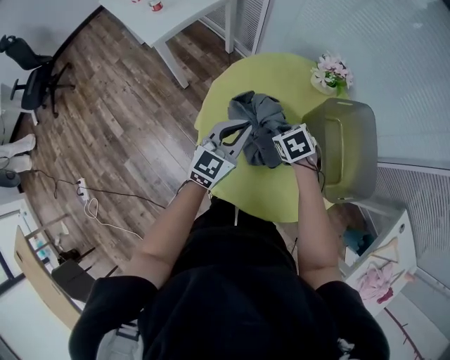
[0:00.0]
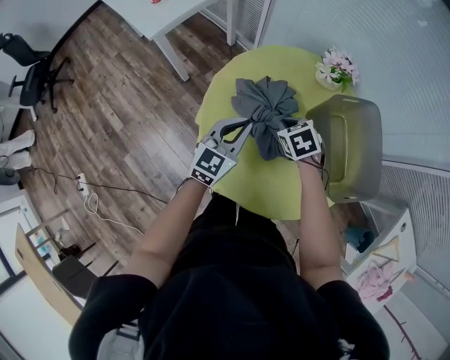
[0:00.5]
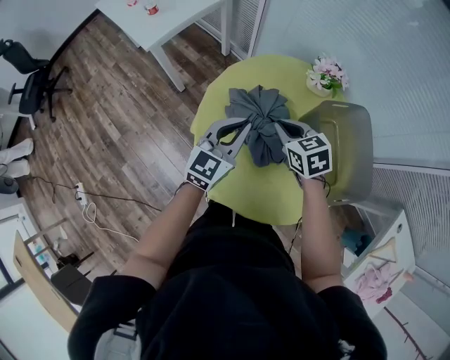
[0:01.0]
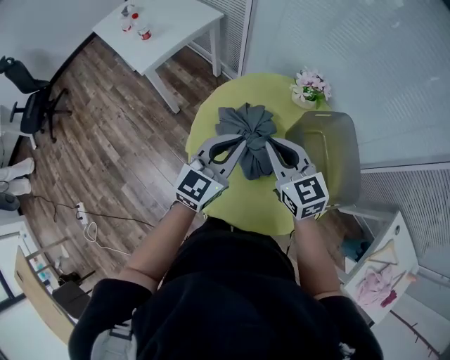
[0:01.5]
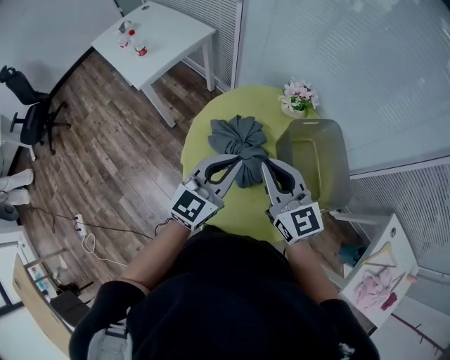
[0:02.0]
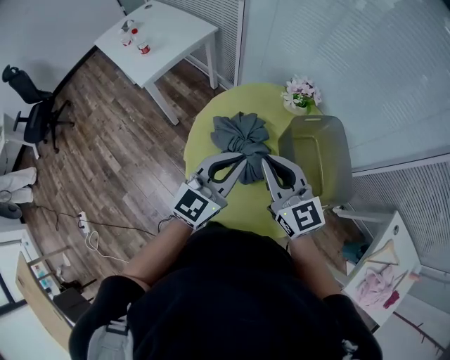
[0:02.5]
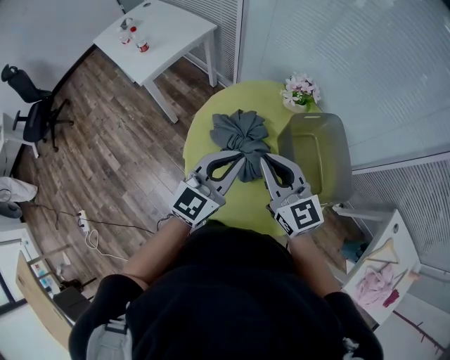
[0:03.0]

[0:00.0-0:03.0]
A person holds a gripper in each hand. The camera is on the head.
0:00.0 to 0:01.5: The right gripper shifts about 20 cm upward, and points its fingers roughly 50 degrees further upward. Meanwhile the left gripper heads upward, covering about 10 cm.
0:01.5 to 0:03.0: The left gripper moves roughly 5 cm, while the right gripper travels upward and backward by roughly 10 cm.

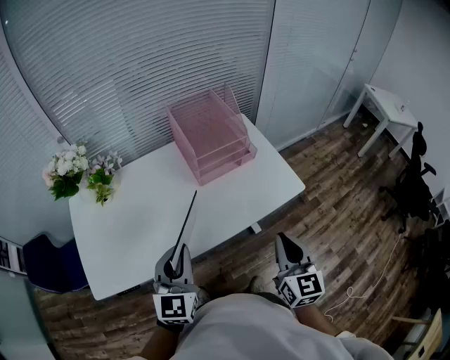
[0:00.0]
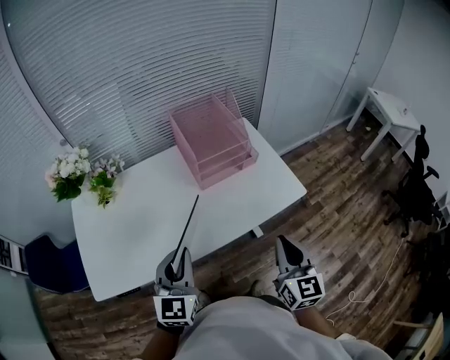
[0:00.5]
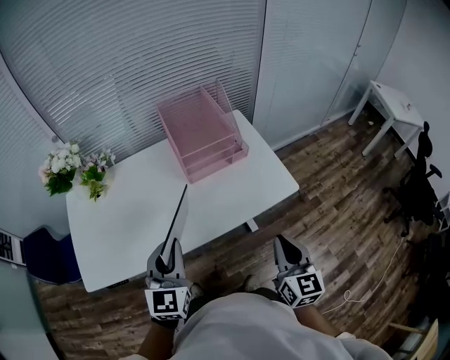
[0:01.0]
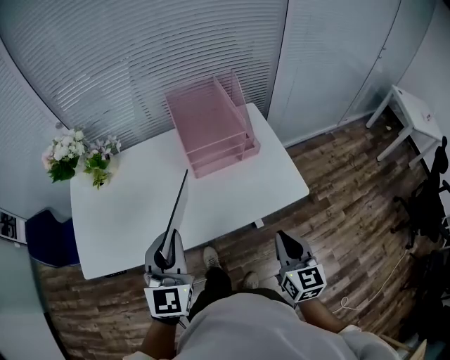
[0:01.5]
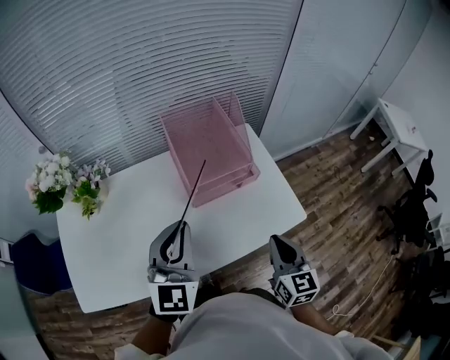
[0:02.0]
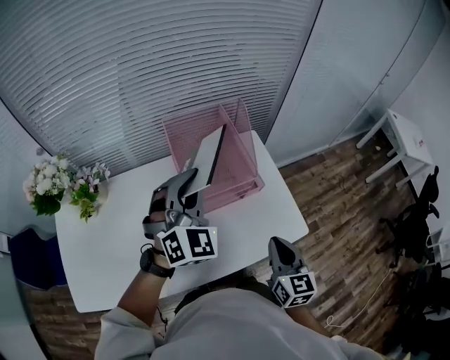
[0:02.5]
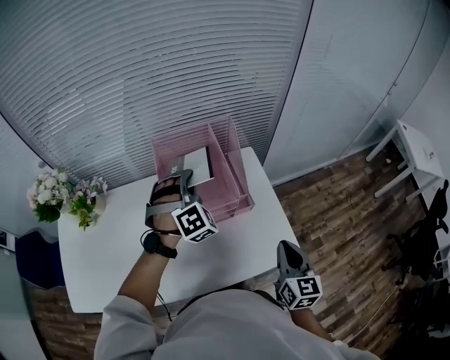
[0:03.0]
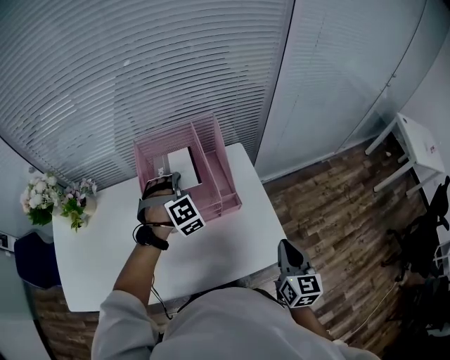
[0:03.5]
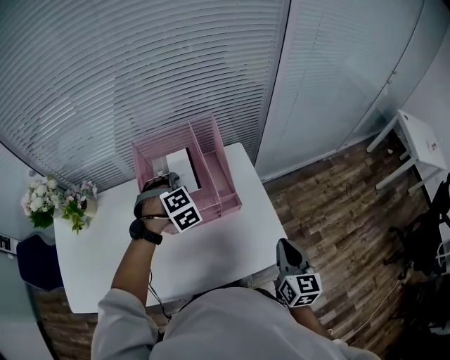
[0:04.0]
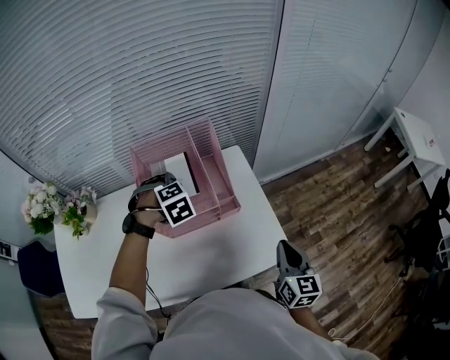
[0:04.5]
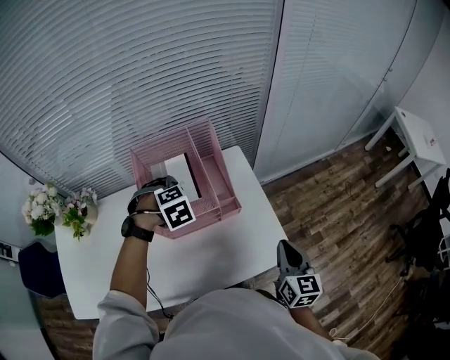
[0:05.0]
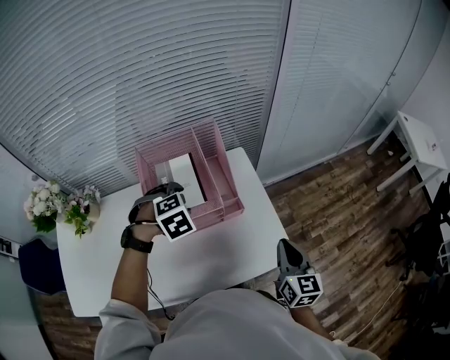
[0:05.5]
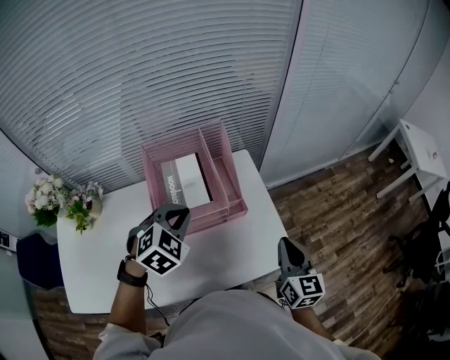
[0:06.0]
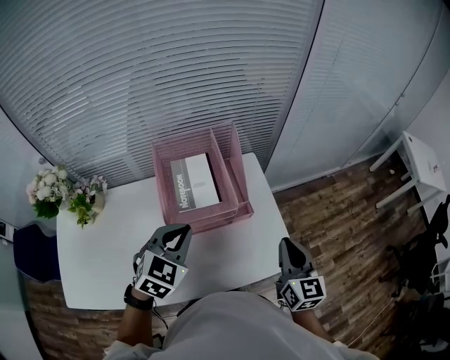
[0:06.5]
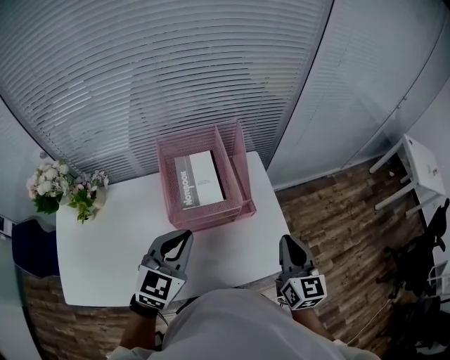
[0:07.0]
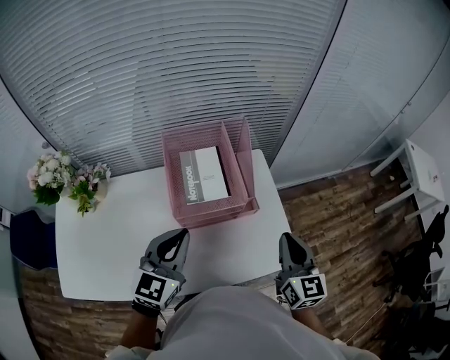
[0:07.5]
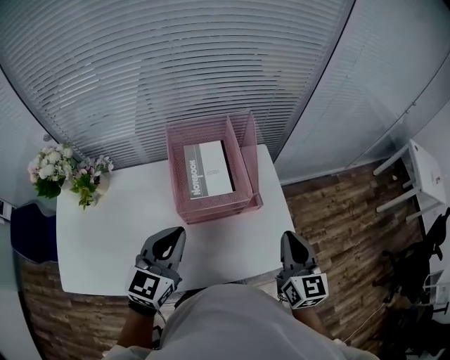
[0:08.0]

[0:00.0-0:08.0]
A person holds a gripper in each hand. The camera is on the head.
0:00.0 to 0:02.0: Both grippers move forward, about 15 cm.
0:02.0 to 0:04.0: The right gripper is displaced to the right and forward by approximately 20 cm. Meanwhile the left gripper goes about 35 cm forward, downward and to the right, tips its fingers downward by roughly 50 degrees, and opens its fingers.
0:04.0 to 0:06.0: The left gripper heads backward and upward, covering roughly 15 cm, changes its angle by about 30 degrees, and closes.
0:06.0 to 0:08.0: The right gripper travels to the left by some 5 cm. The left gripper is displaced backward and to the left by some 10 cm, and changes its angle by roughly 50 degrees.

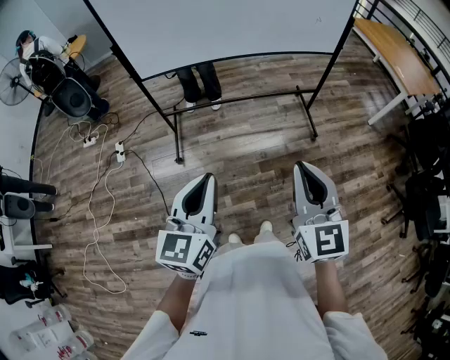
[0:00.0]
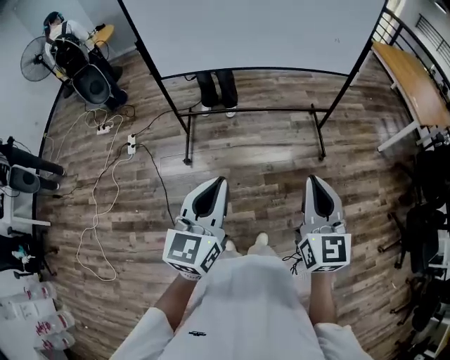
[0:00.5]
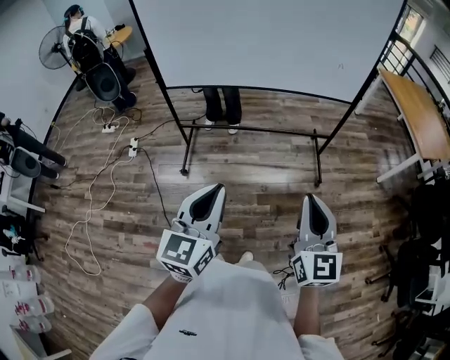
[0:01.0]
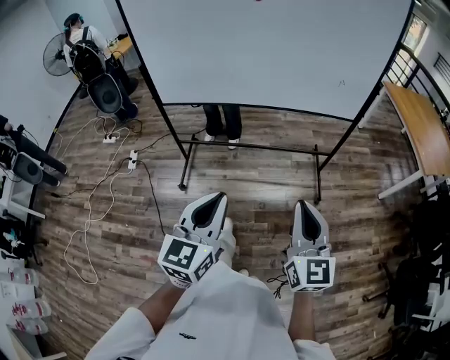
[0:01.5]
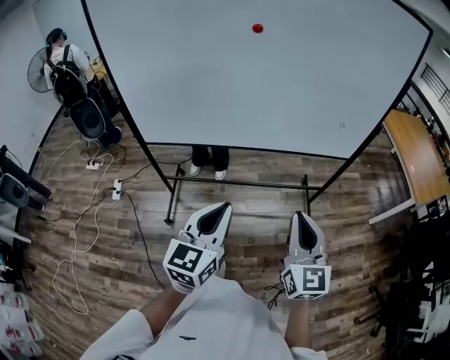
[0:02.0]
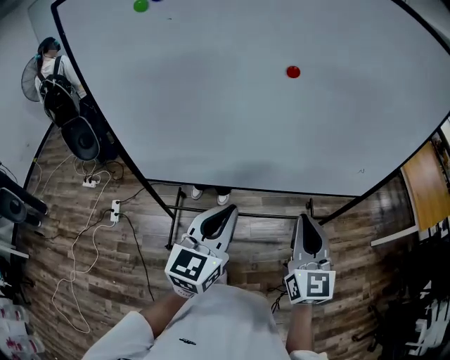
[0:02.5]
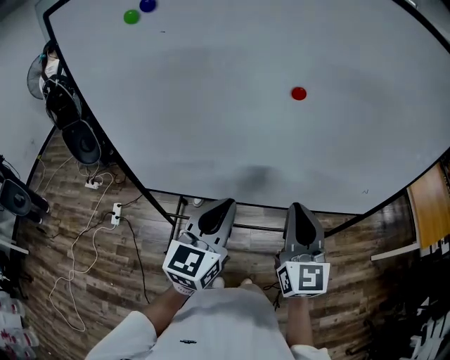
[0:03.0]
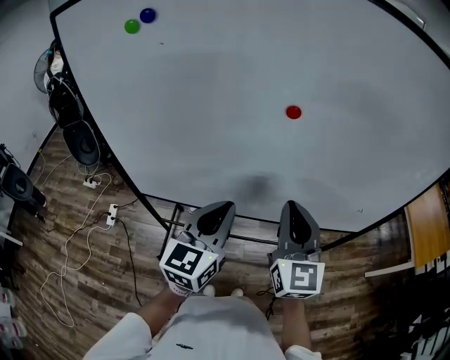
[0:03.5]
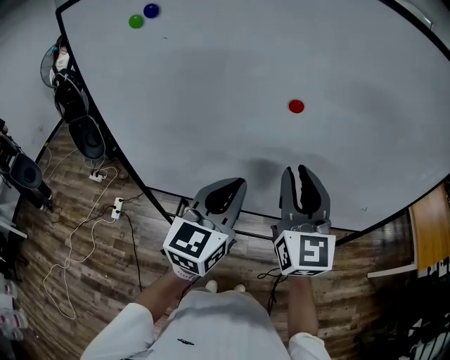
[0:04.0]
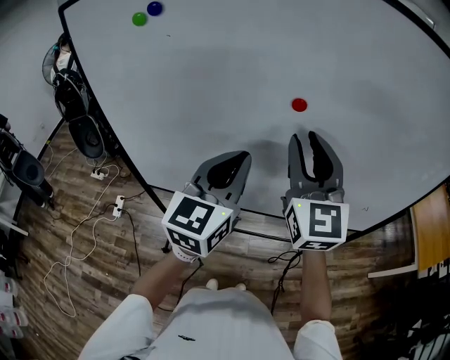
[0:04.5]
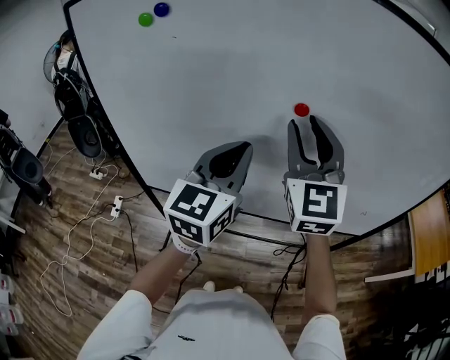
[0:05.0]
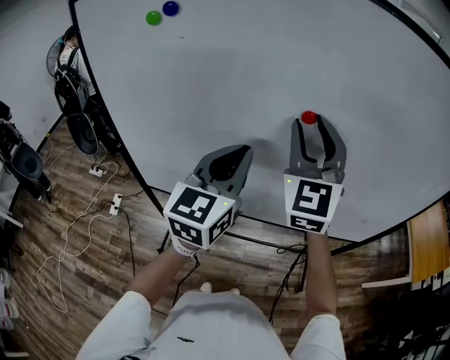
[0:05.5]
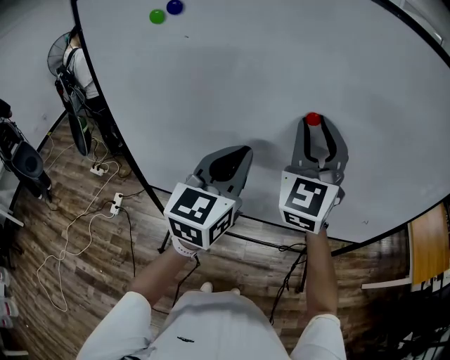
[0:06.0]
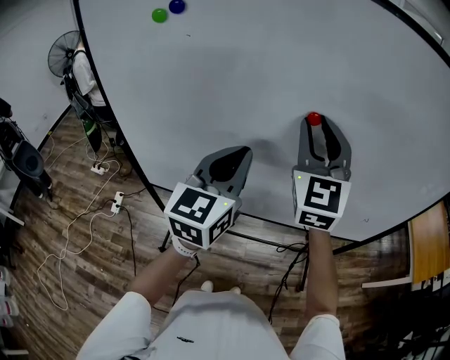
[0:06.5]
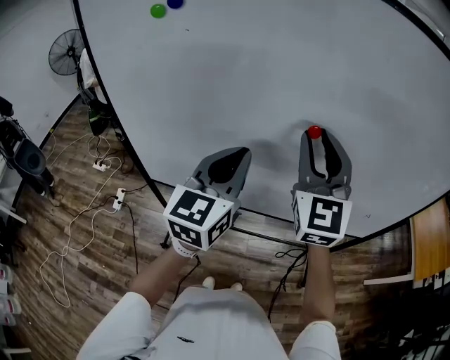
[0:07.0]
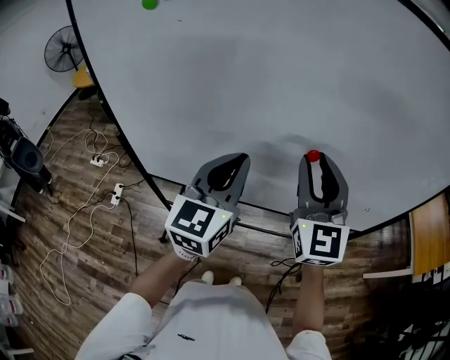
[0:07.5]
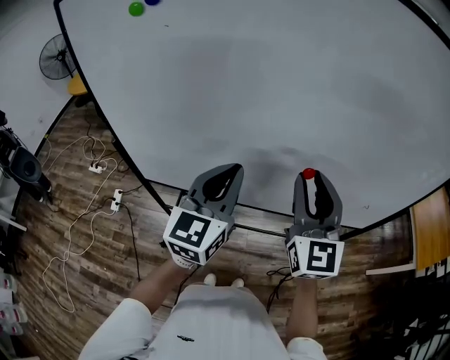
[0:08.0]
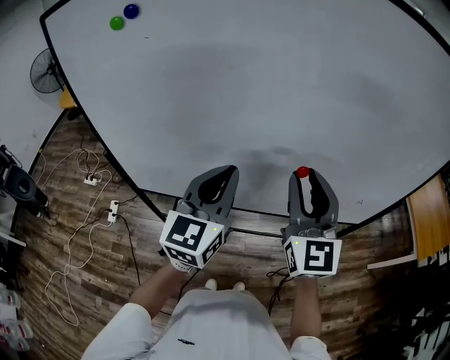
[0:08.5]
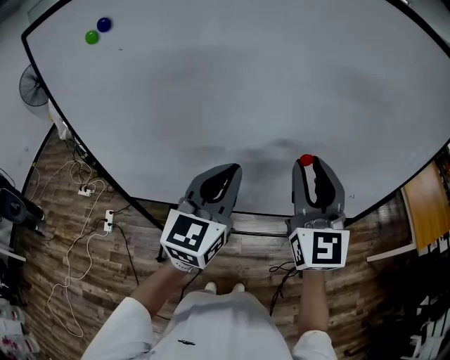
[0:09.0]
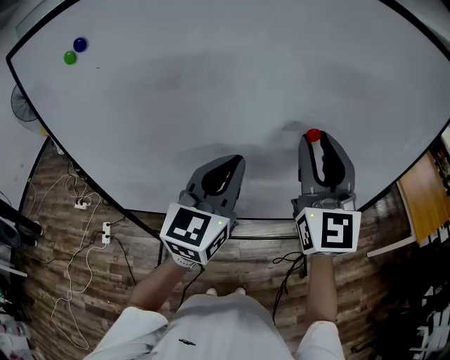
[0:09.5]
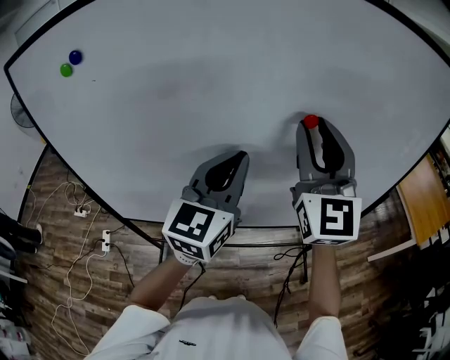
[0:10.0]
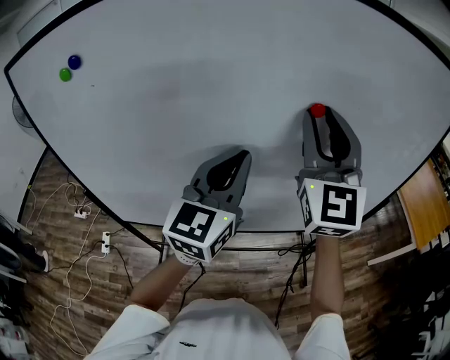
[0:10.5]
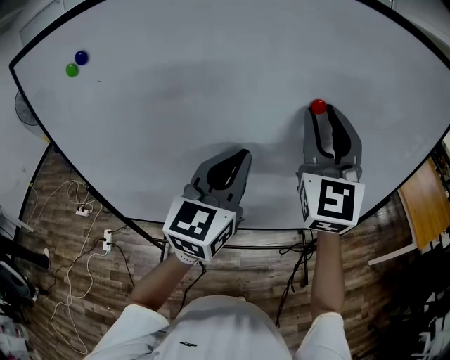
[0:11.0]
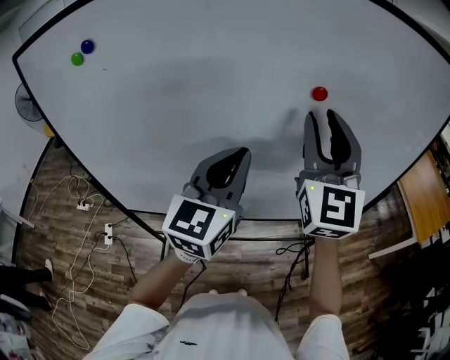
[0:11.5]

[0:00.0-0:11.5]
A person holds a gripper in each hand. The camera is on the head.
0:00.0 to 0:02.0: Both grippers travel together forward, approximately 30 cm.
0:02.0 to 0:04.0: The left gripper is displaced forward by approximately 30 cm, while the right gripper is displaced forward and upward by approximately 35 cm.
0:04.0 to 0:06.0: The right gripper is displaced upward and forward by approximately 10 cm, and changes its angle by roughly 30 degrees, while the left gripper moves upward, about 5 cm.
0:06.0 to 0:07.5: The right gripper moves downward and backward, approximately 10 cm, and rotates approximately 20 degrees.
0:07.5 to 0:09.5: The left gripper travels to the right by about 10 cm; the right gripper goes about 10 cm to the right and upward.

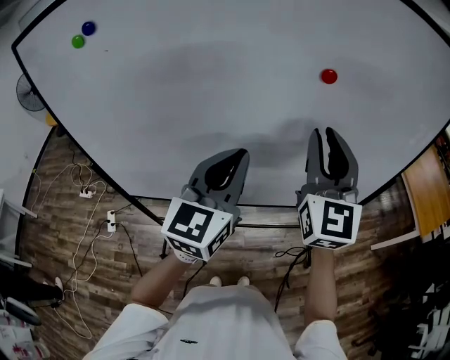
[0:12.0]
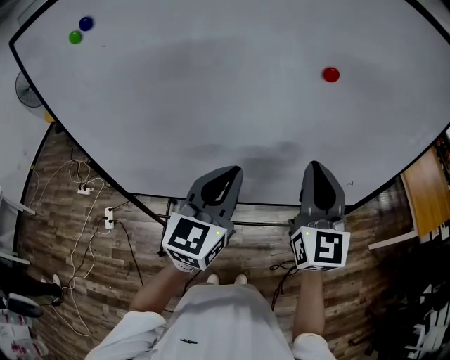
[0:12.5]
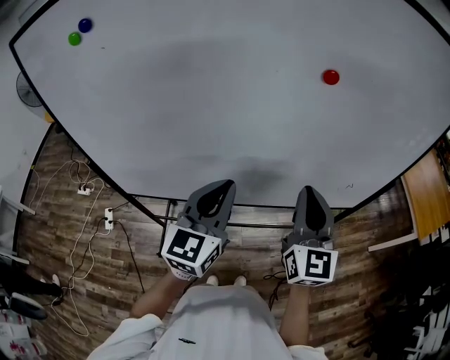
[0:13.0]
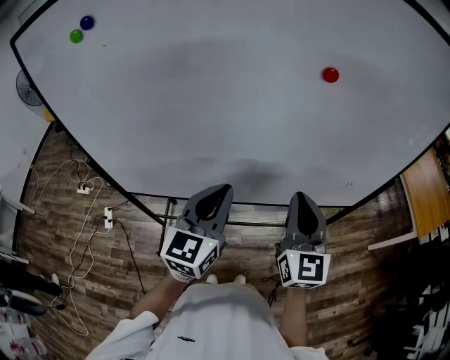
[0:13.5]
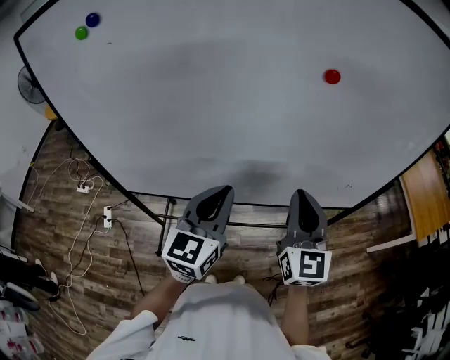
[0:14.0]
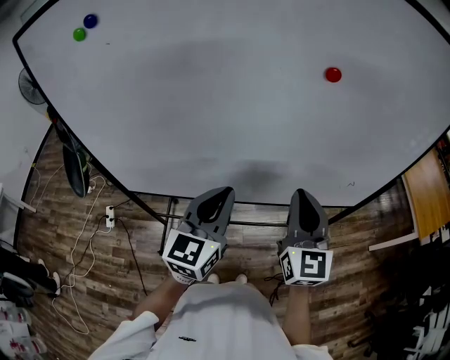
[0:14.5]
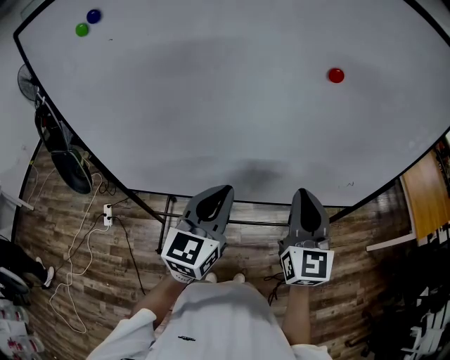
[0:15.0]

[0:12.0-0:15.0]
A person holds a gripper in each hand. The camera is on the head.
0:12.0 to 0:13.5: The right gripper moves downward and backward, roughly 15 cm. The left gripper heads downward, covering approximately 10 cm.
0:13.5 to 0:15.0: Both grippers stay put.
